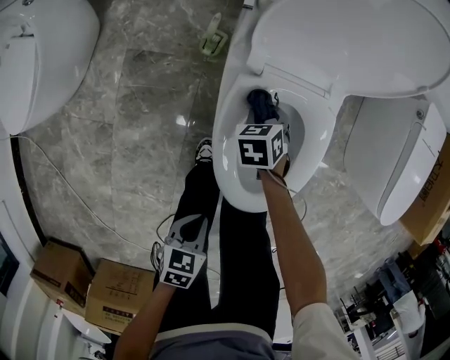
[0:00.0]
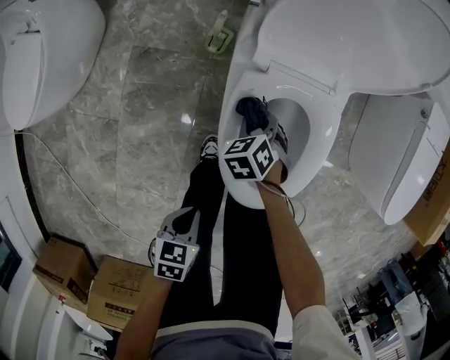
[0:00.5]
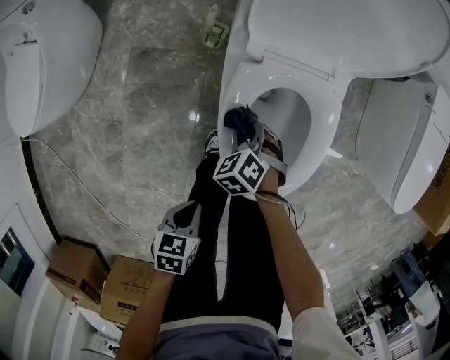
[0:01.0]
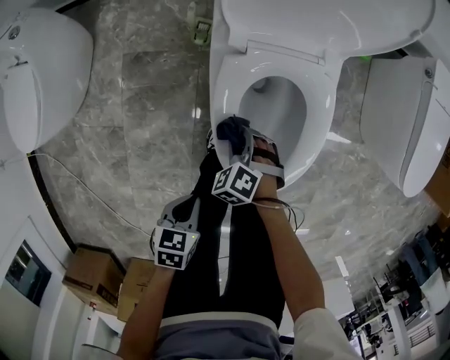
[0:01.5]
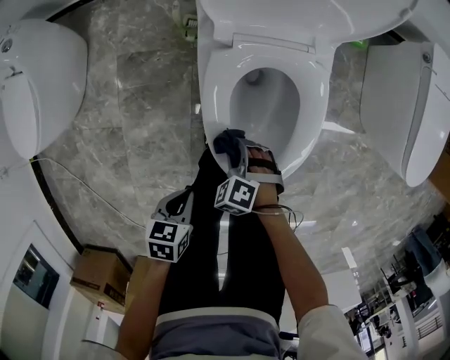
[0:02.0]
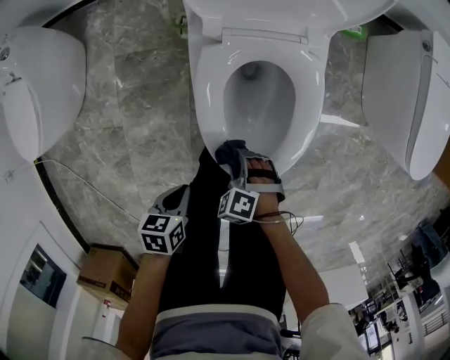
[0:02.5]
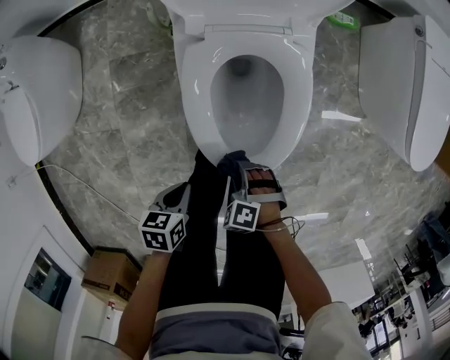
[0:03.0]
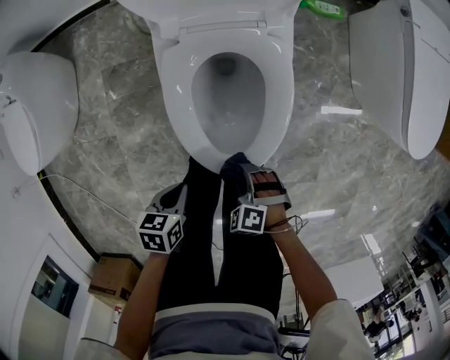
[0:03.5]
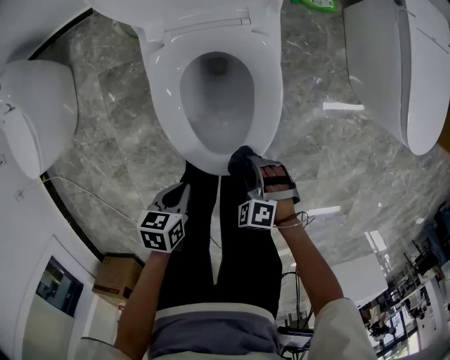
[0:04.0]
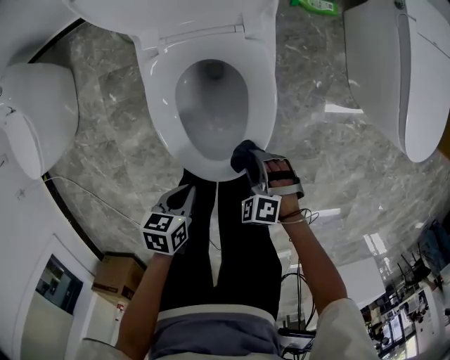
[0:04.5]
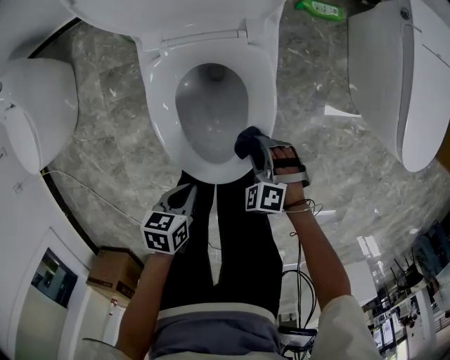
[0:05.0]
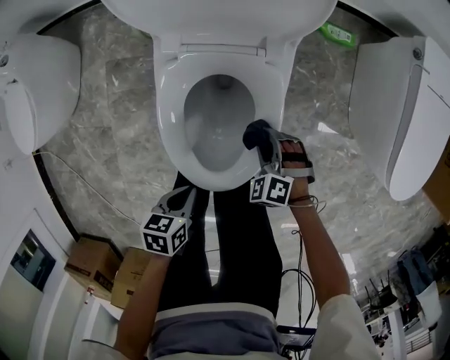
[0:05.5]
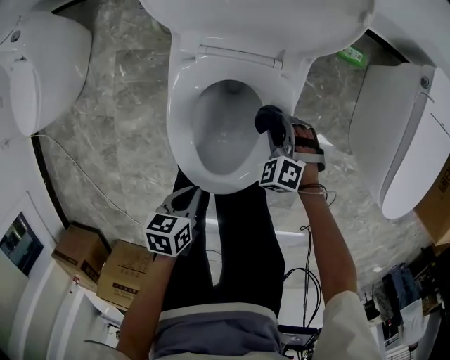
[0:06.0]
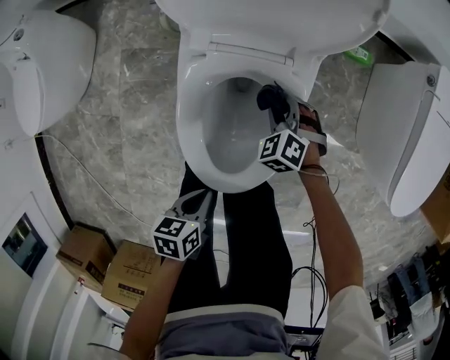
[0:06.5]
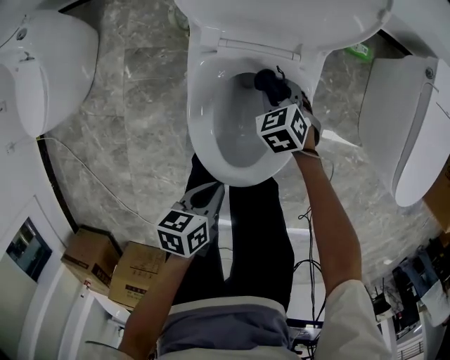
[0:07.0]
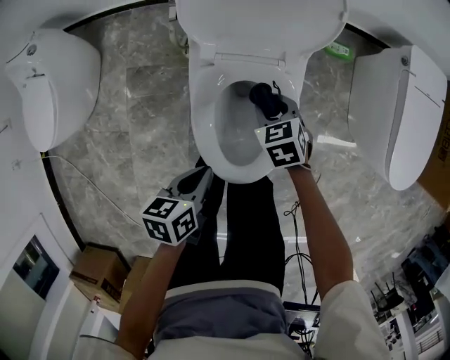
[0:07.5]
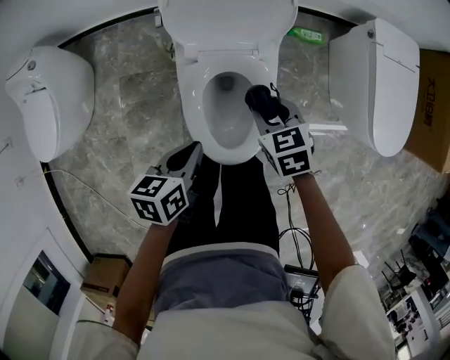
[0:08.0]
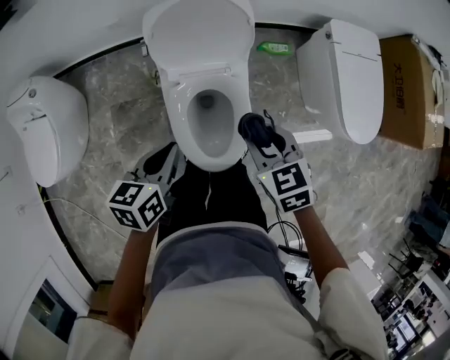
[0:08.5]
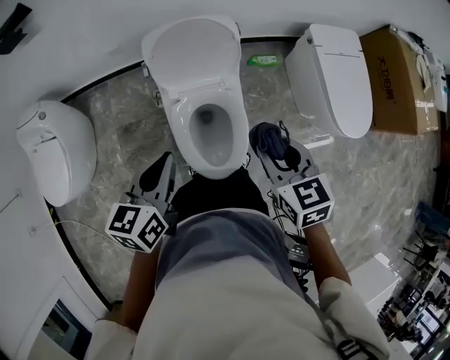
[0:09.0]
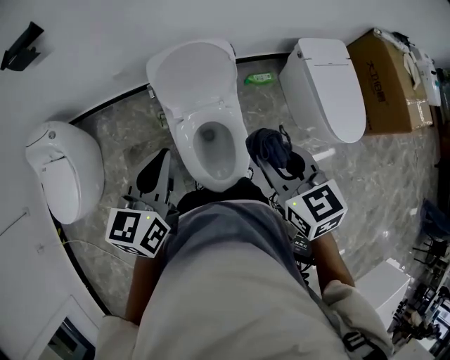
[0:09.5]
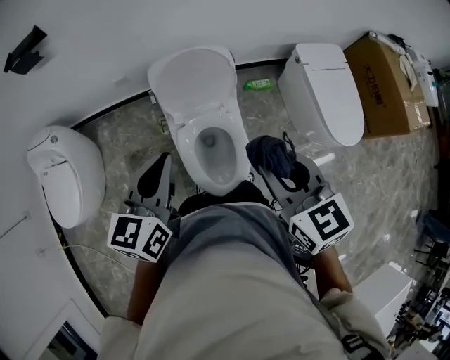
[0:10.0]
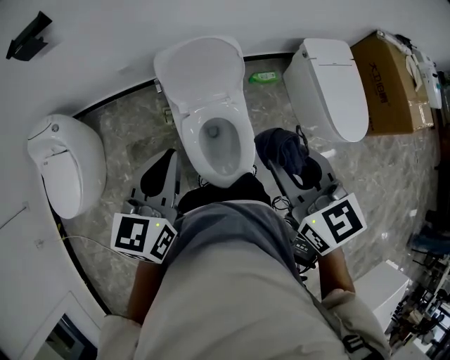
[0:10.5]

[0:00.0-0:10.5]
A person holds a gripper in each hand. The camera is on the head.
0:00.0 to 0:02.0: The right gripper moves backward, approximately 20 cm, and changes its angle by approximately 40 degrees.
0:02.0 to 0:04.0: The right gripper moves roughly 20 cm, while the left gripper moves approximately 10 cm.
0:04.0 to 0:06.5: The right gripper moves forward, about 30 cm; the left gripper goes about 5 cm forward.
0:06.5 to 0:08.5: The left gripper goes roughly 30 cm upward and forward, and changes its angle by about 30 degrees; the right gripper moves upward, about 40 cm, and rotates around the line of its fingers by some 50 degrees, clockwise from behind.
0:08.5 to 0:10.5: Both grippers move upward, about 20 cm. The right gripper turns by approximately 30 degrees. Meanwhile the left gripper rotates roughly 30 degrees.

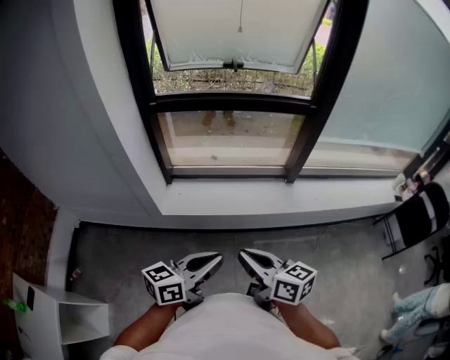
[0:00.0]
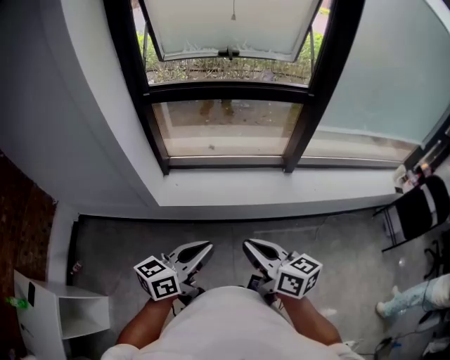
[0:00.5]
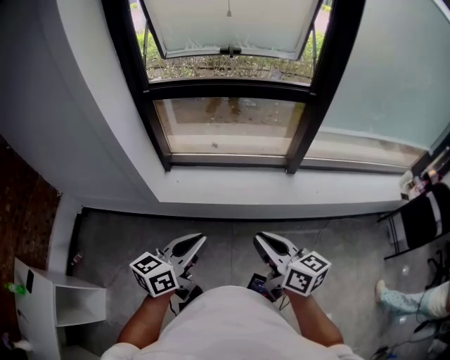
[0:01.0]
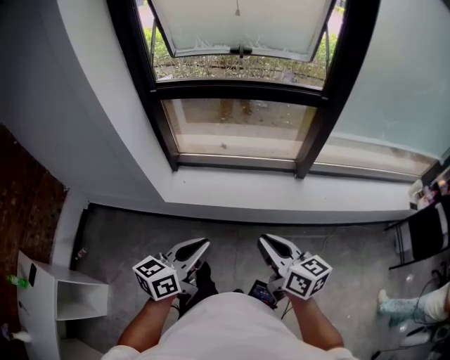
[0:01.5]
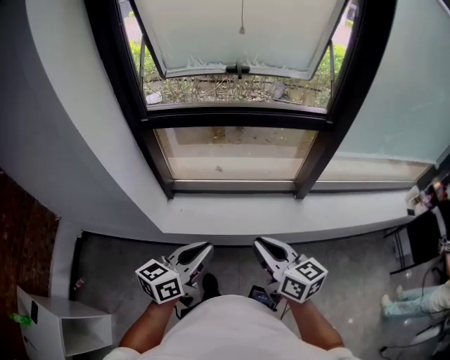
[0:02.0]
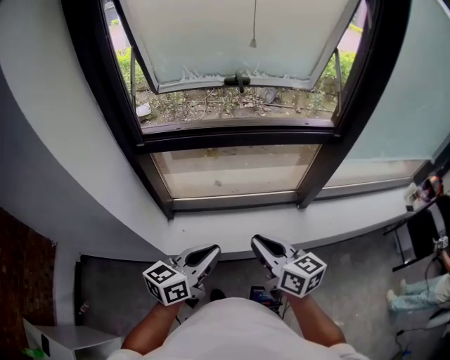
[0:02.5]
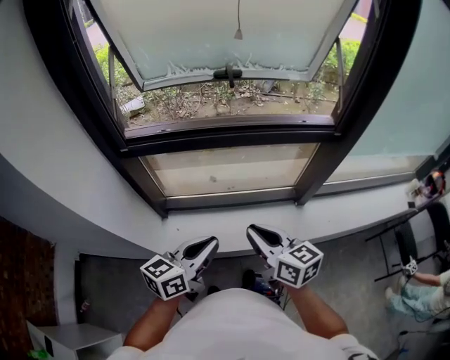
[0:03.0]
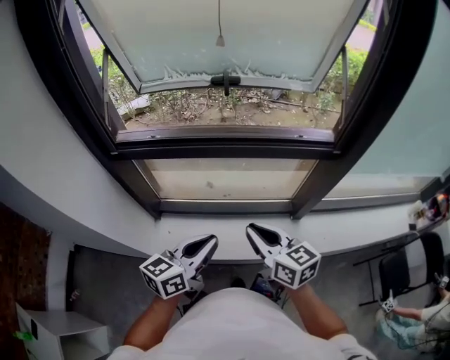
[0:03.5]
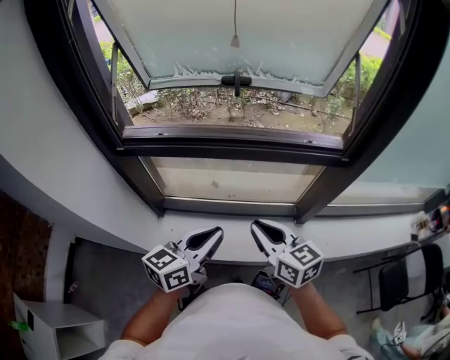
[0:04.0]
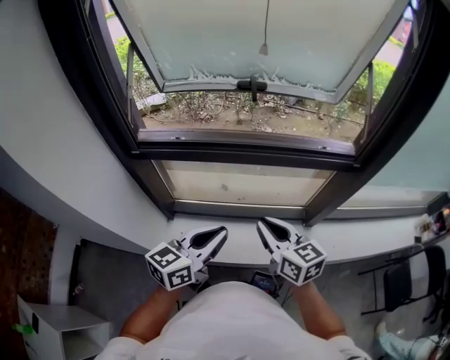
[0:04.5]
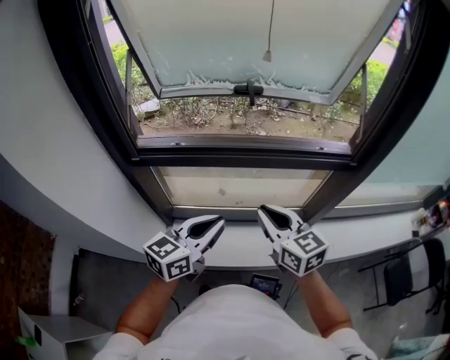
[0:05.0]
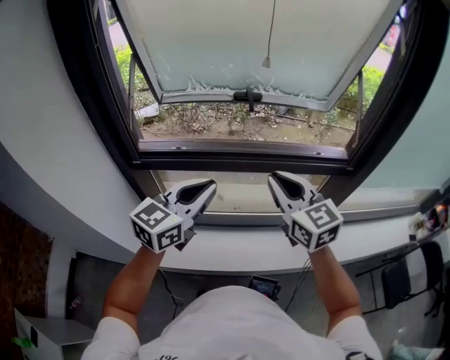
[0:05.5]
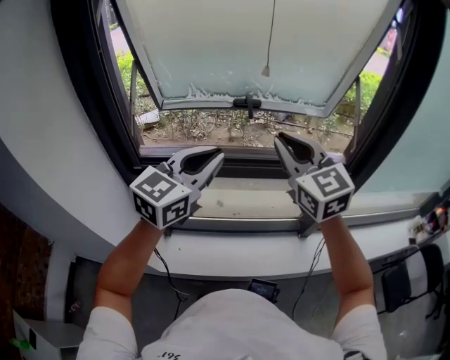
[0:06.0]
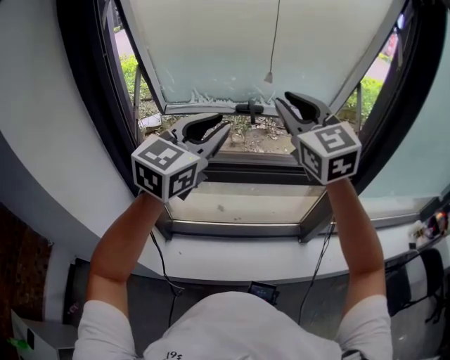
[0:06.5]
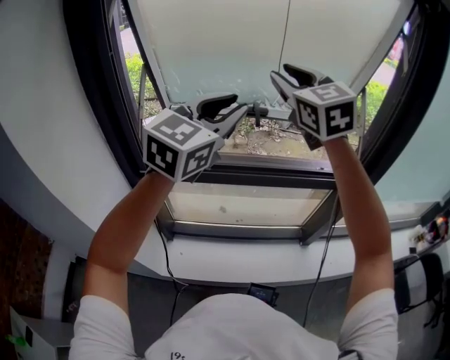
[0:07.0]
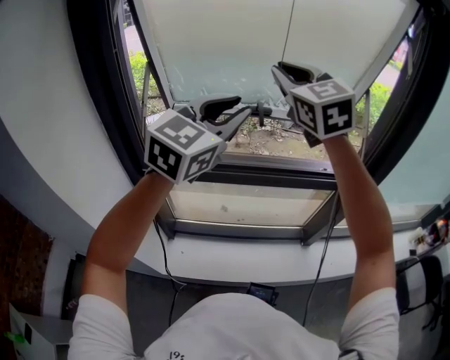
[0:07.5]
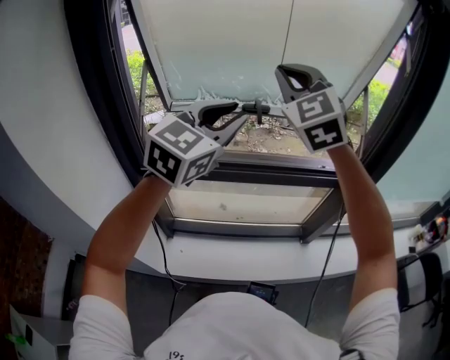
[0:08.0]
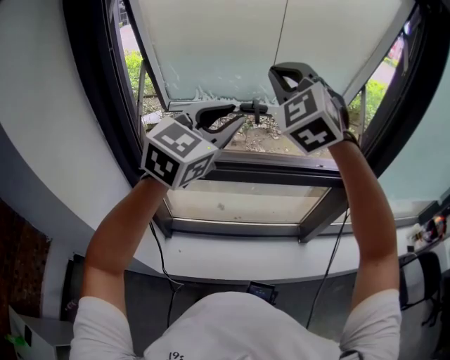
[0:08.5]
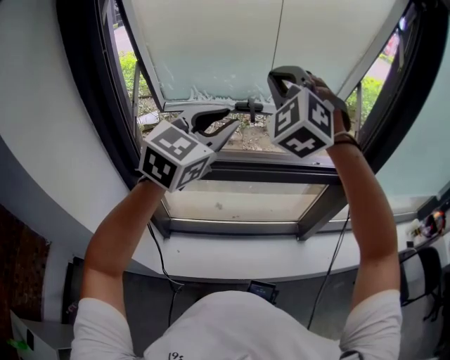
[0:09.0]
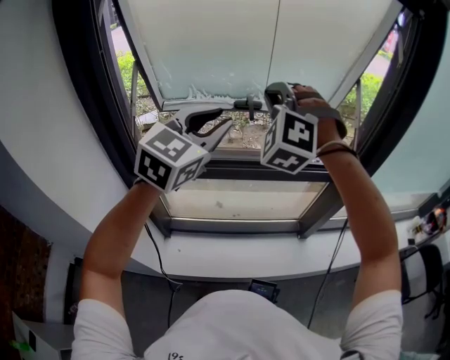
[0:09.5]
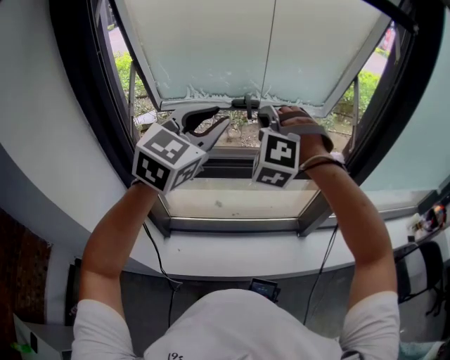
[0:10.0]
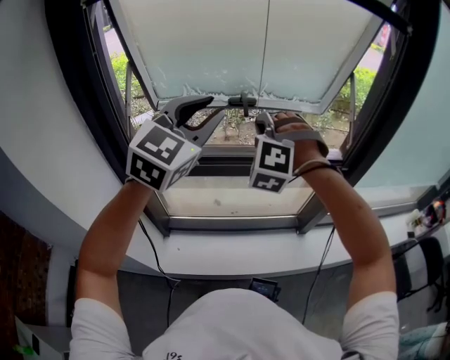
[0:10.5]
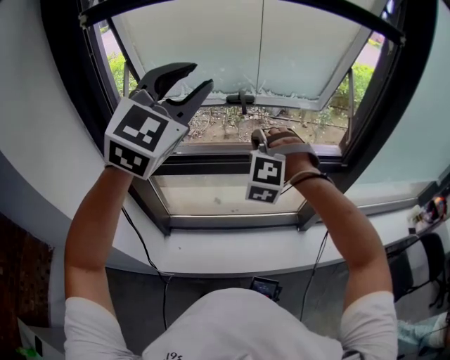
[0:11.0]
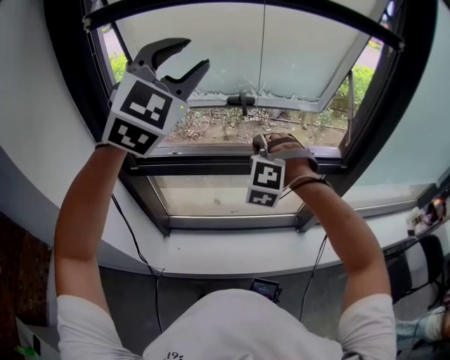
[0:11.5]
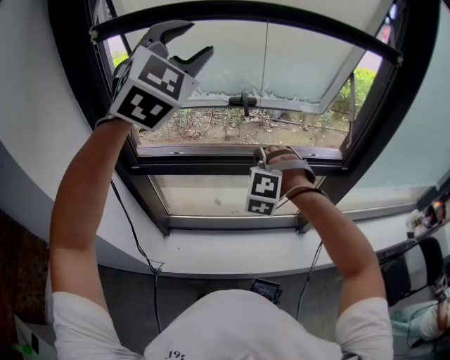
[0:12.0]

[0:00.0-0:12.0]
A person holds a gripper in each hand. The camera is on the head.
0:00.0 to 0:02.0: Both grippers travel together forward, approximately 20 cm.
0:02.0 to 0:04.0: The grippers both shift forward by approximately 25 cm.
0:04.0 to 0:06.0: The right gripper shifts approximately 25 cm upward and forward, and rotates some 40 degrees; the left gripper moves upward, forward and to the left, about 25 cm, and swivels roughly 30 degrees.
0:06.0 to 0:08.0: The right gripper moves upward, forward and to the left, some 15 cm, changes its angle by about 30 degrees, and opens, then closes once more. Meanwhile the left gripper goes some 10 cm upward.
0:08.0 to 0:10.0: The right gripper heads downward, covering some 15 cm, and changes its angle by some 50 degrees.
0:10.0 to 0:12.0: The left gripper is displaced upward by approximately 15 cm, swivels about 40 degrees, and opens its fingers. The right gripper travels downward by approximately 15 cm.

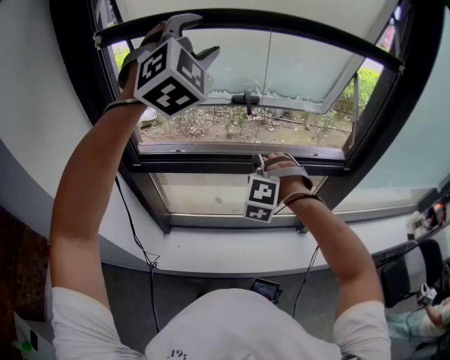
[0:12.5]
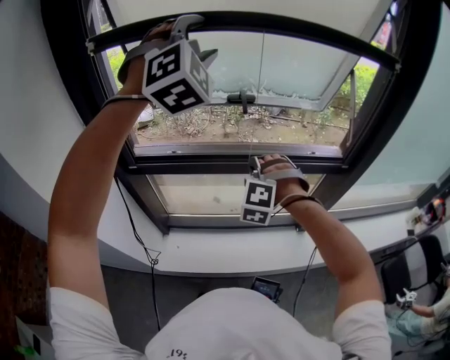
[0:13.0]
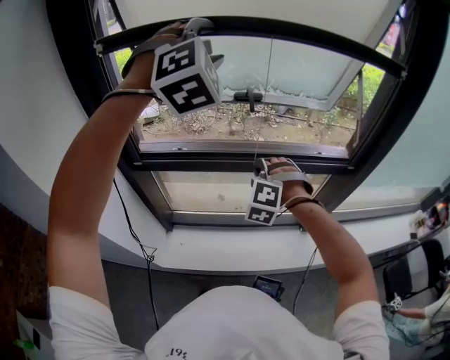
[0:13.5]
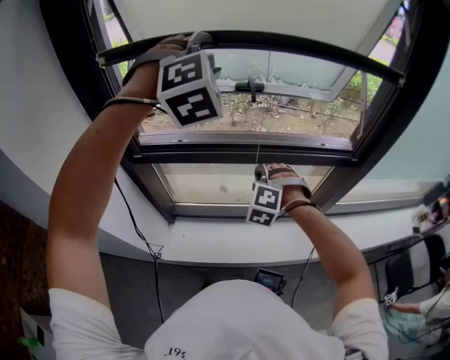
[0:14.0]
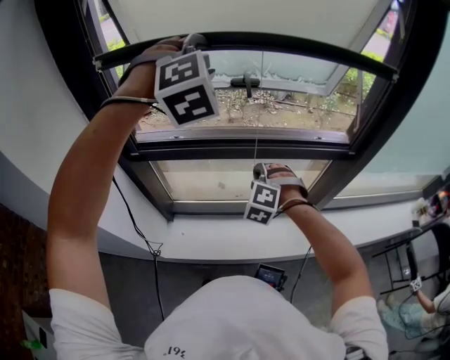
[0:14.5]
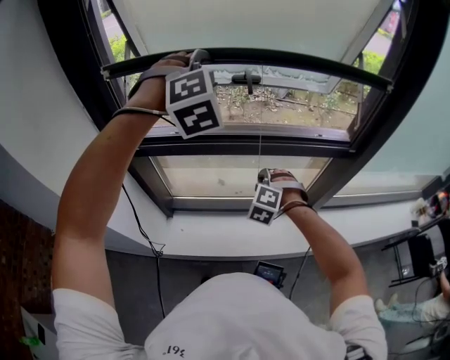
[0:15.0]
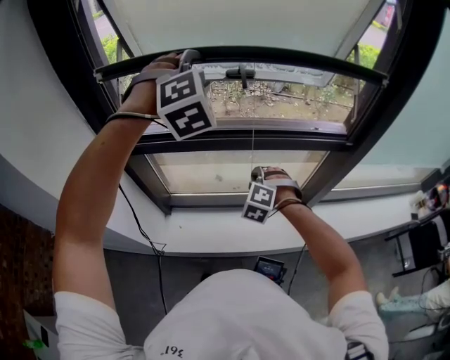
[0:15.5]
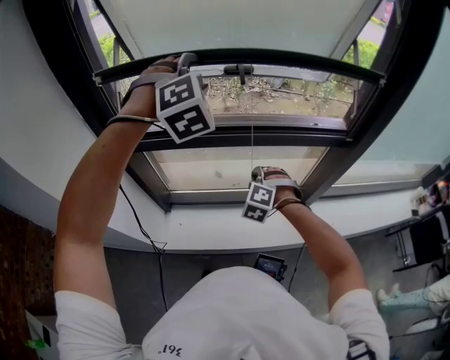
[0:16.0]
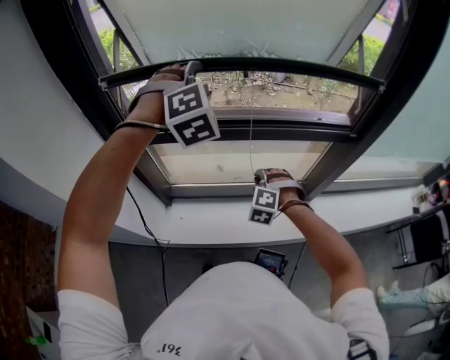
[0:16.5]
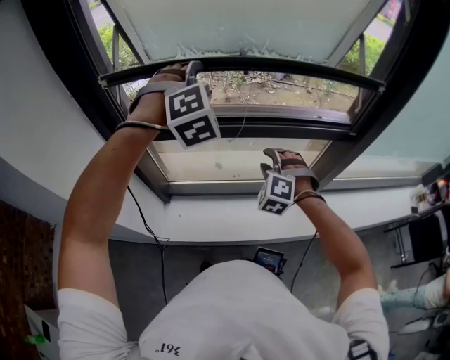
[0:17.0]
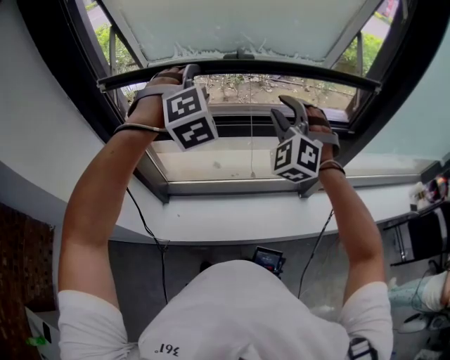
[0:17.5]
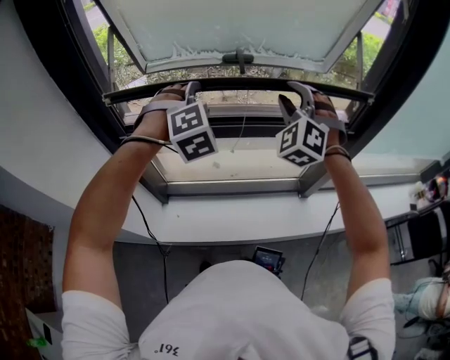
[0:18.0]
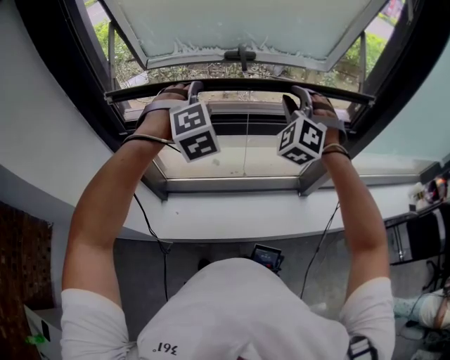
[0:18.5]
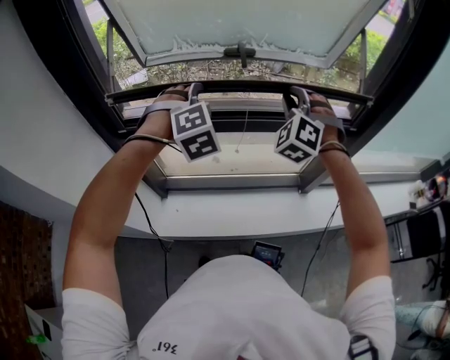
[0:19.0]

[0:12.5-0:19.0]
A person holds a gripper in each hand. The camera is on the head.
0:12.5 to 0:14.5: Both grippers travel together downward, approximately 10 cm. The left gripper rotates about 30 degrees.
0:14.5 to 0:17.0: The right gripper reaches roughly 10 cm downward, then returns, and opens its fingers. Meanwhile the left gripper travels downward by about 15 cm.
0:17.0 to 0:19.0: The left gripper is displaced downward by about 10 cm; the right gripper travels upward and forward by roughly 20 cm, turns by about 20 degrees, and closes.
